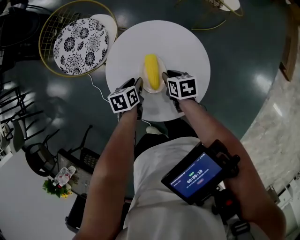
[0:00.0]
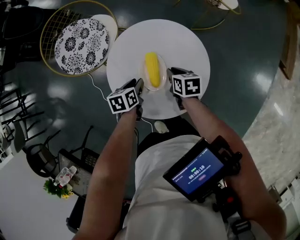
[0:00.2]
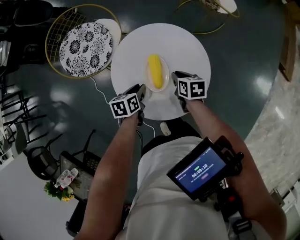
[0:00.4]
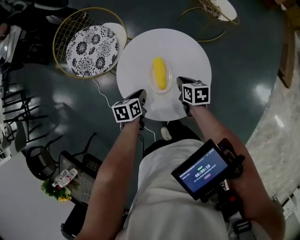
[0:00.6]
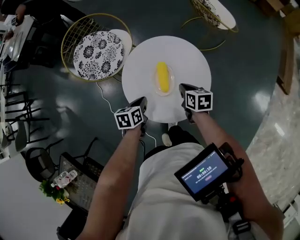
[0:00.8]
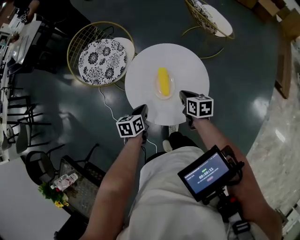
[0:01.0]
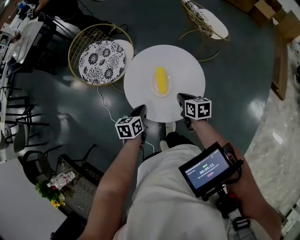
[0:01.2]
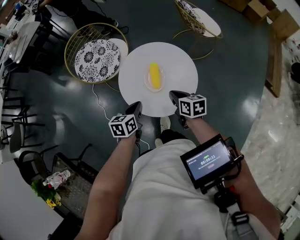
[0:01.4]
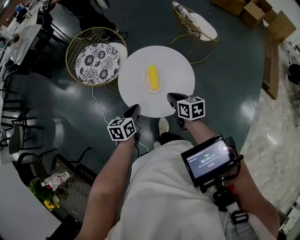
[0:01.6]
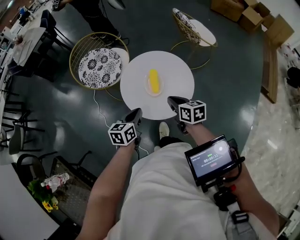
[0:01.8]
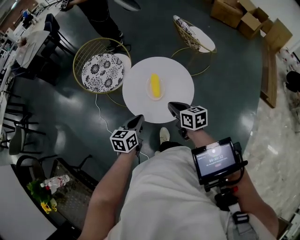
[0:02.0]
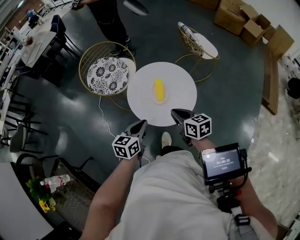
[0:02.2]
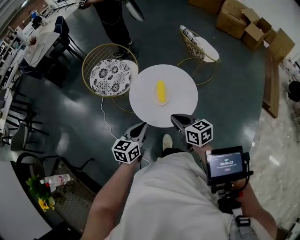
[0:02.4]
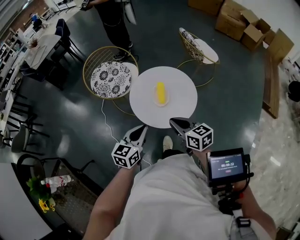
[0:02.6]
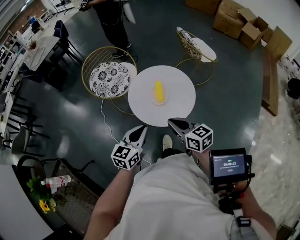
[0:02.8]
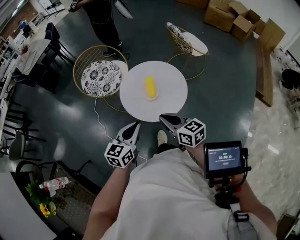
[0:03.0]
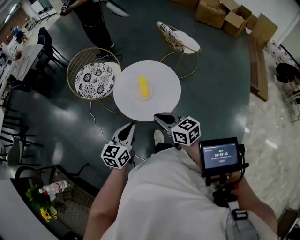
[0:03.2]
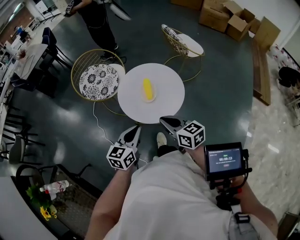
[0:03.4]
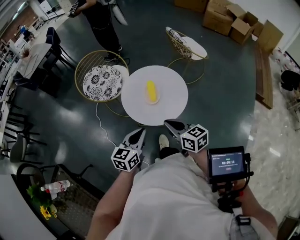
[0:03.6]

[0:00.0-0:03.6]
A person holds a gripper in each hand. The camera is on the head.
0:00.0 to 0:01.8: The two grippers go roughly 25 cm upward and backward. The left gripper rotates about 30 degrees, and closes; the right gripper turns by about 20 degrees.
0:01.8 to 0:03.6: Both grippers travel together backward and upward, some 15 cm.

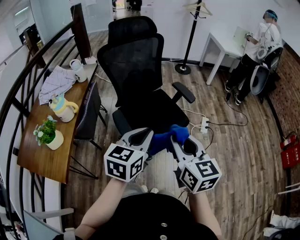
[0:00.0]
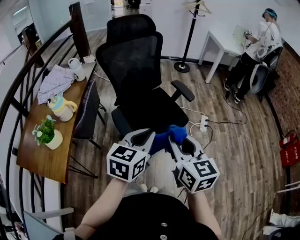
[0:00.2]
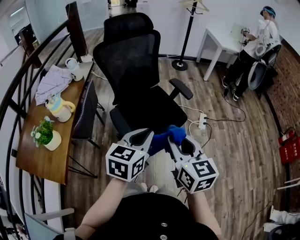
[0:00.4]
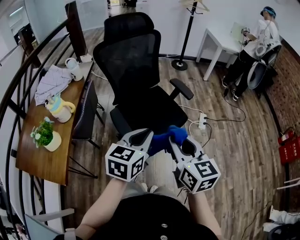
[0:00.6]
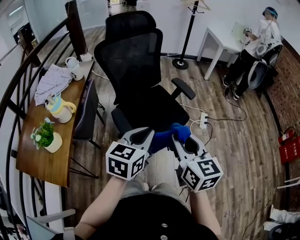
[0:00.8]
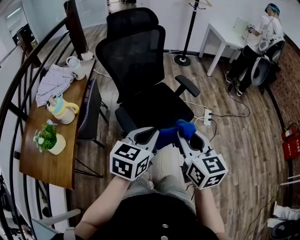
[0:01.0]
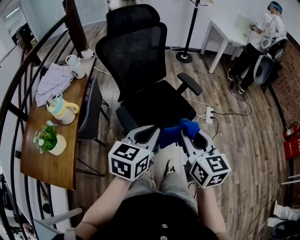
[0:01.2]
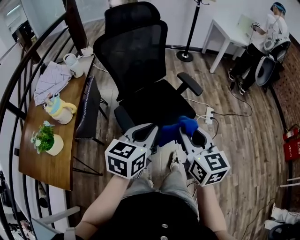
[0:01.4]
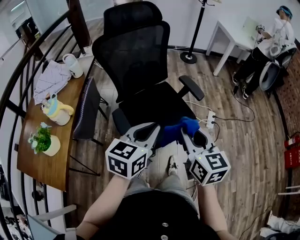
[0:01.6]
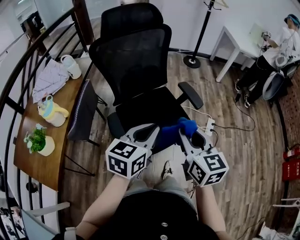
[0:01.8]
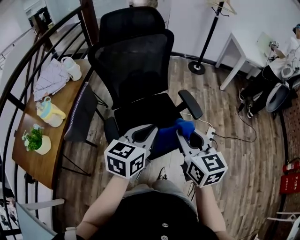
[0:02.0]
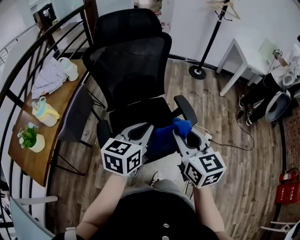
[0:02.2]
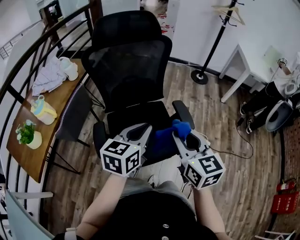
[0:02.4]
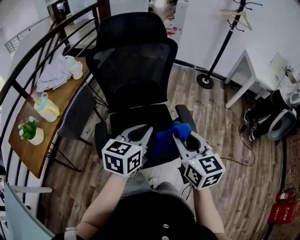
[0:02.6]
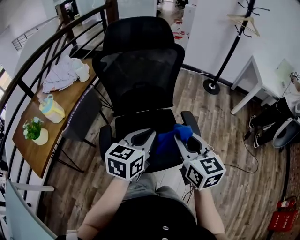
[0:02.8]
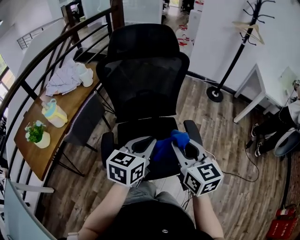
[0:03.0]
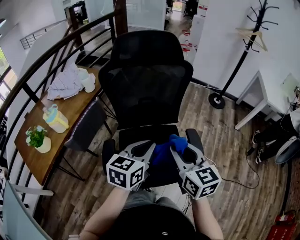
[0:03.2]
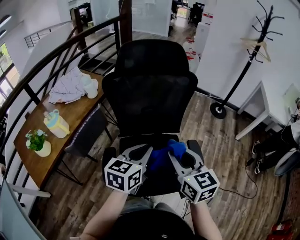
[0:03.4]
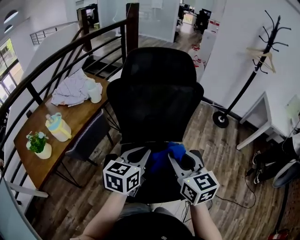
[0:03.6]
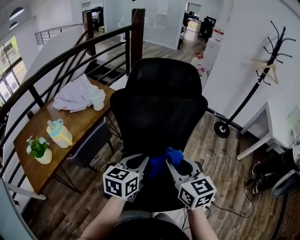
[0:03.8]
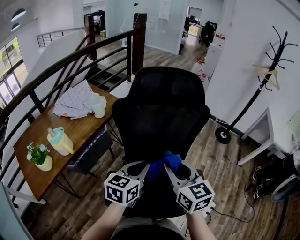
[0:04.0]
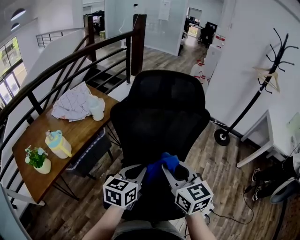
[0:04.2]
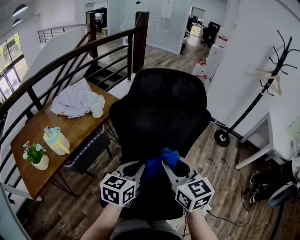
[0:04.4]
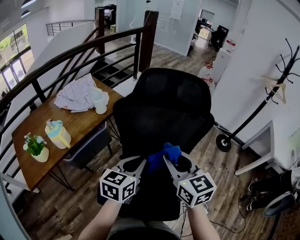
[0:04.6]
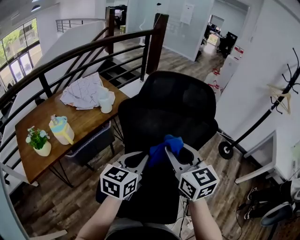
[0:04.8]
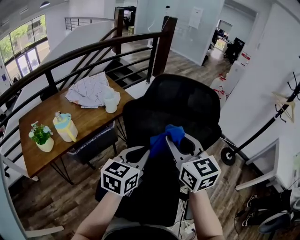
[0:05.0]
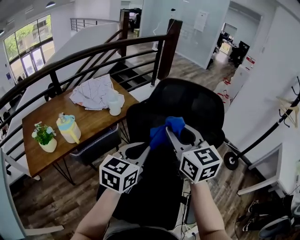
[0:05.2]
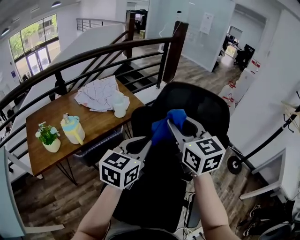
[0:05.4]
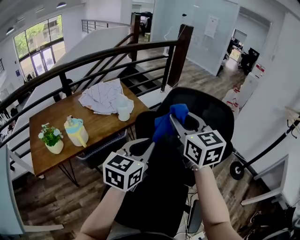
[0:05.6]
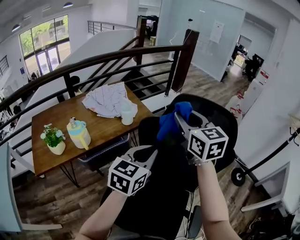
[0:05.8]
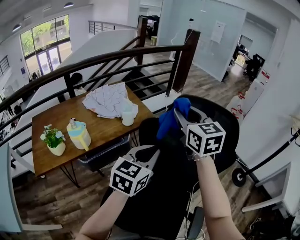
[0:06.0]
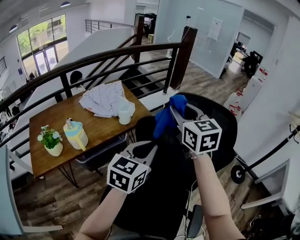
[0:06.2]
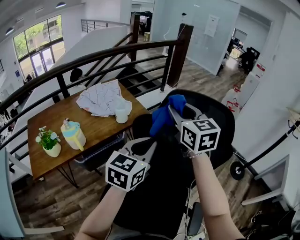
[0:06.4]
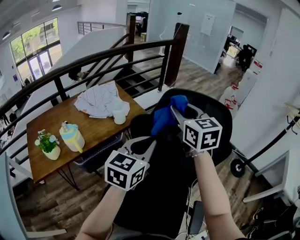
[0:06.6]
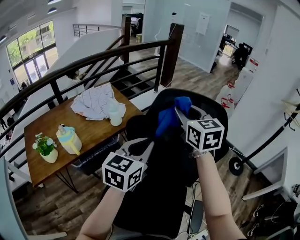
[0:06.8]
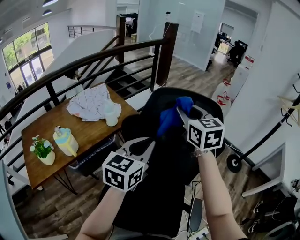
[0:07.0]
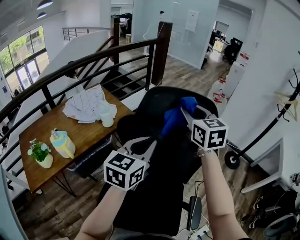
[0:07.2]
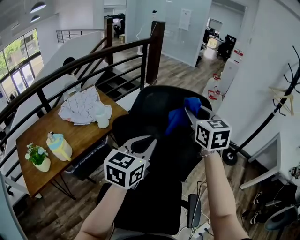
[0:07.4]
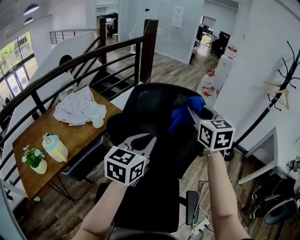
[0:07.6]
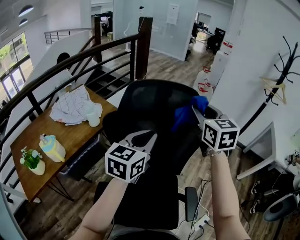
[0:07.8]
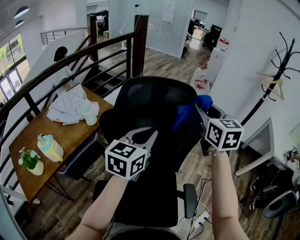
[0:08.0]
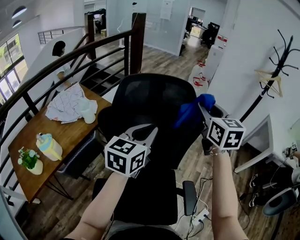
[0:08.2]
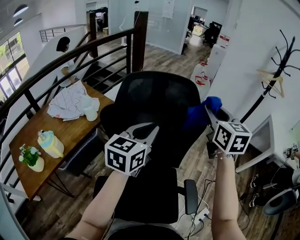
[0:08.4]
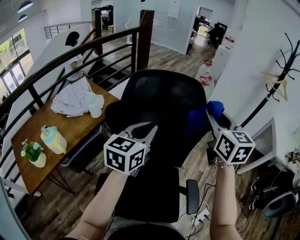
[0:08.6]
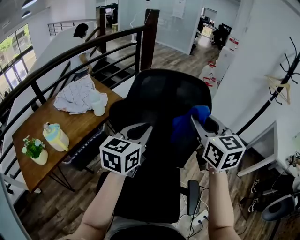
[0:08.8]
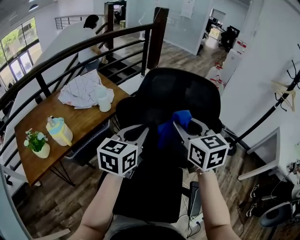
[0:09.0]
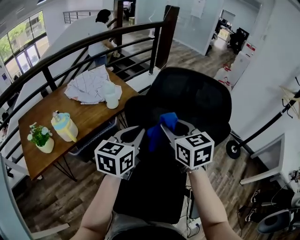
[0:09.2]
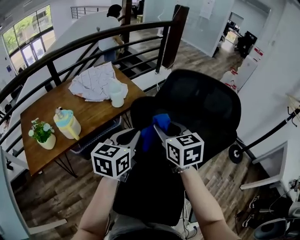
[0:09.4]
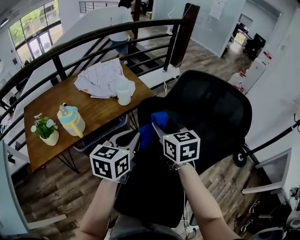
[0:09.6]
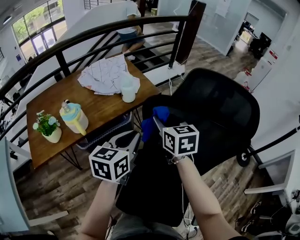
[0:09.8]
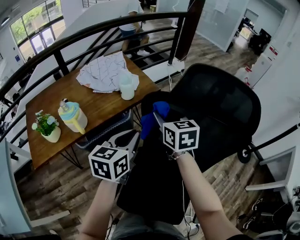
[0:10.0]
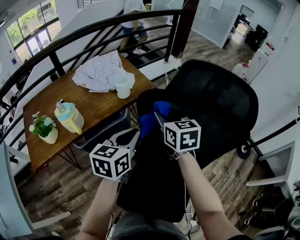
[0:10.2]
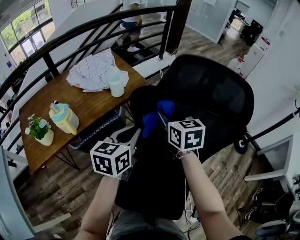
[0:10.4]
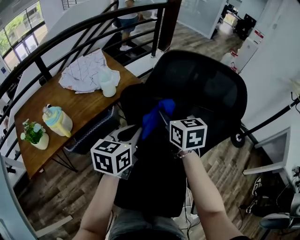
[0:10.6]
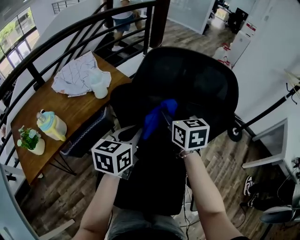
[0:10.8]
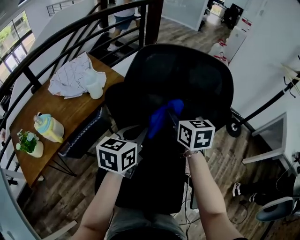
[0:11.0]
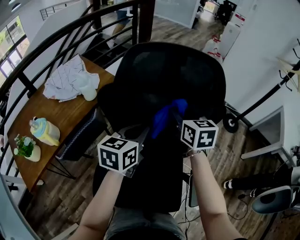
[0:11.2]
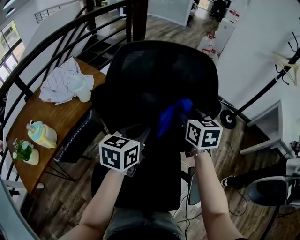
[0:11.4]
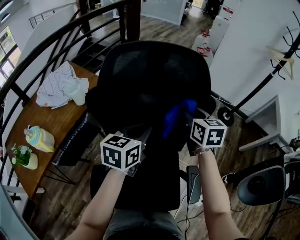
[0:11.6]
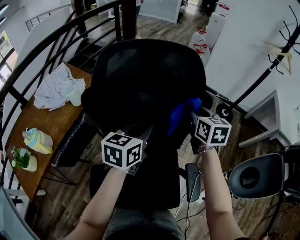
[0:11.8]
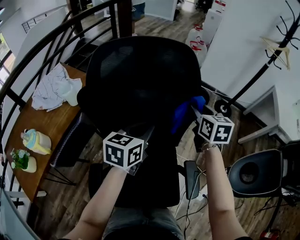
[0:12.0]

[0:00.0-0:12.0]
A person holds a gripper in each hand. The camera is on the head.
0:00.0 to 0:01.6: The grippers both shift forward by about 10 cm.
0:01.6 to 0:03.0: The left gripper changes place by some 20 cm, and turns by some 20 degrees. Meanwhile the right gripper moves some 25 cm, and rotates roughly 30 degrees.
0:03.0 to 0:04.4: Both grippers travel together forward and to the left, roughly 20 cm.
0:04.4 to 0:06.0: The left gripper goes some 15 cm forward and upward, while the right gripper heads forward and upward, covering roughly 30 cm.
0:06.0 to 0:07.6: The right gripper moves to the right, some 20 cm, and changes its angle by approximately 20 degrees. The left gripper moves to the right, approximately 10 cm.
0:07.6 to 0:09.0: The right gripper is displaced backward, to the left and downward by roughly 15 cm, while the left gripper goes some 5 cm to the left.
0:09.0 to 0:10.4: The left gripper moves downward and to the left, approximately 10 cm, while the right gripper is displaced downward, forward and to the left by some 20 cm.
0:10.4 to 0:12.0: The left gripper ends up roughly 25 cm from where it was, and rotates about 30 degrees; the right gripper changes place by roughly 35 cm, and swivels roughly 30 degrees.

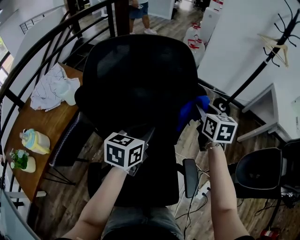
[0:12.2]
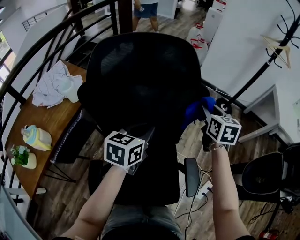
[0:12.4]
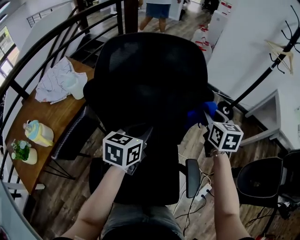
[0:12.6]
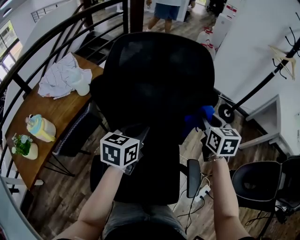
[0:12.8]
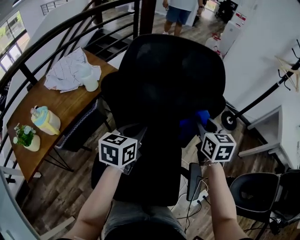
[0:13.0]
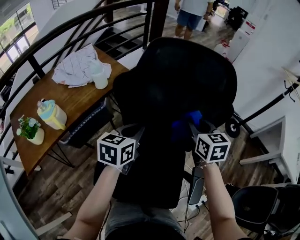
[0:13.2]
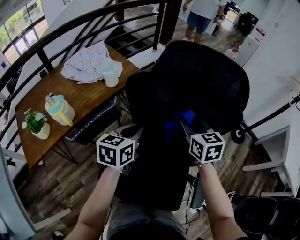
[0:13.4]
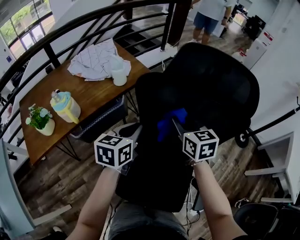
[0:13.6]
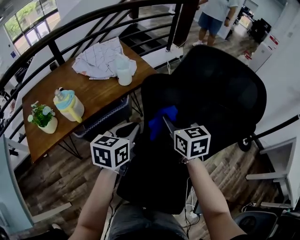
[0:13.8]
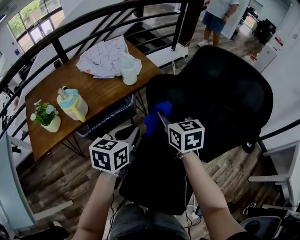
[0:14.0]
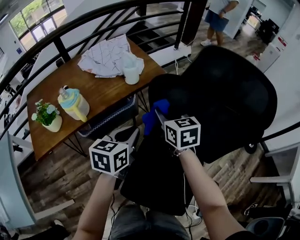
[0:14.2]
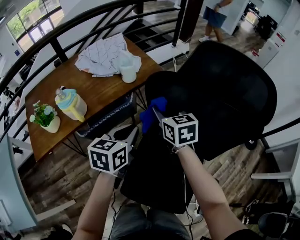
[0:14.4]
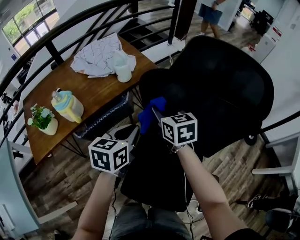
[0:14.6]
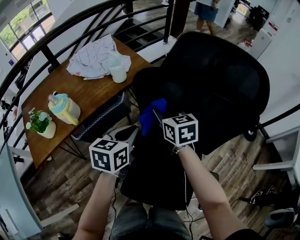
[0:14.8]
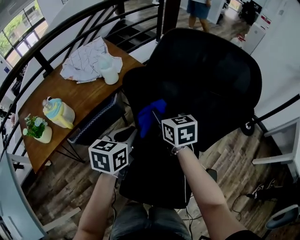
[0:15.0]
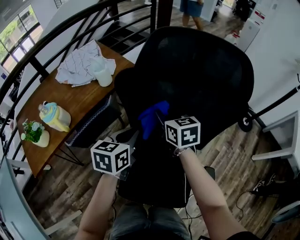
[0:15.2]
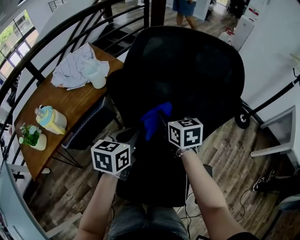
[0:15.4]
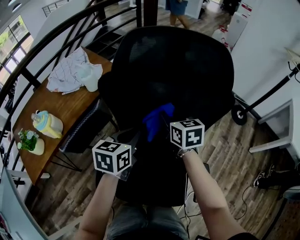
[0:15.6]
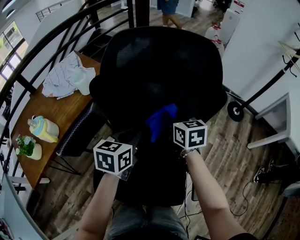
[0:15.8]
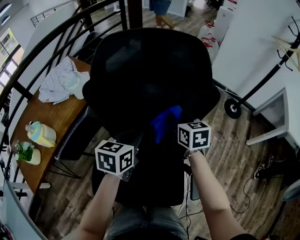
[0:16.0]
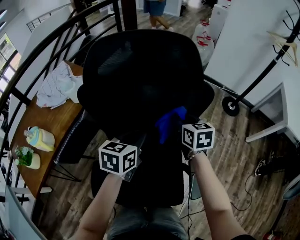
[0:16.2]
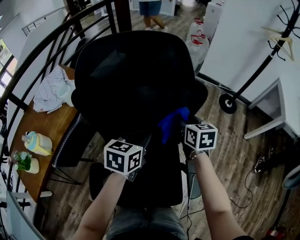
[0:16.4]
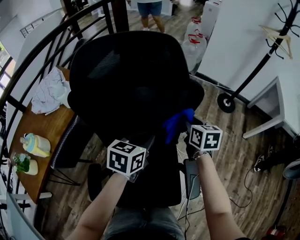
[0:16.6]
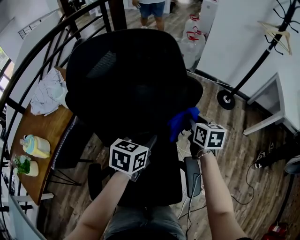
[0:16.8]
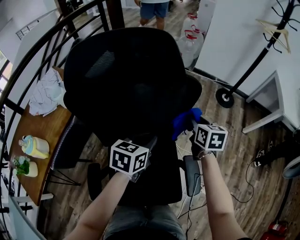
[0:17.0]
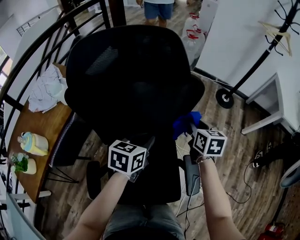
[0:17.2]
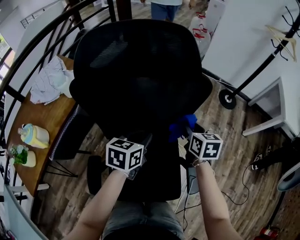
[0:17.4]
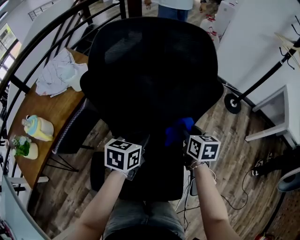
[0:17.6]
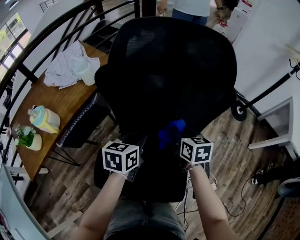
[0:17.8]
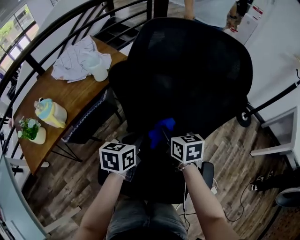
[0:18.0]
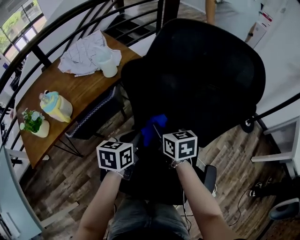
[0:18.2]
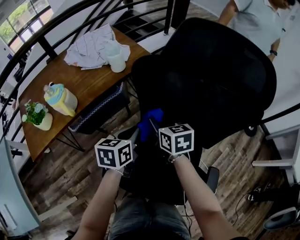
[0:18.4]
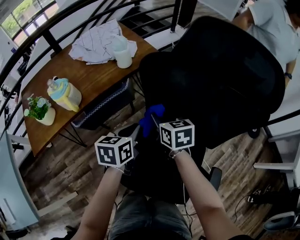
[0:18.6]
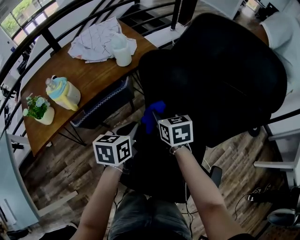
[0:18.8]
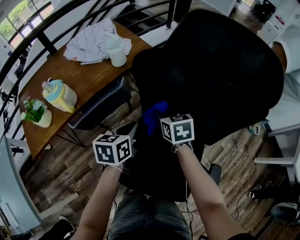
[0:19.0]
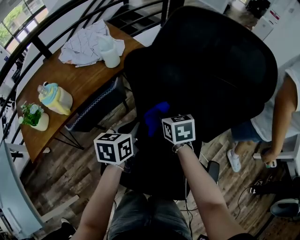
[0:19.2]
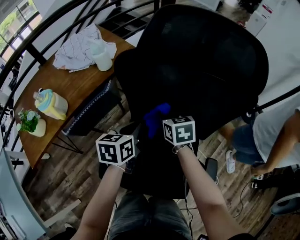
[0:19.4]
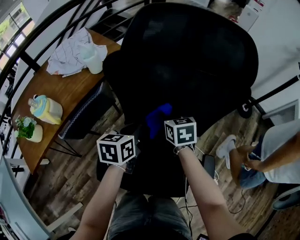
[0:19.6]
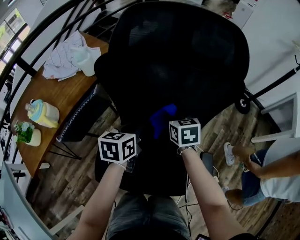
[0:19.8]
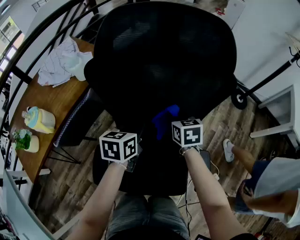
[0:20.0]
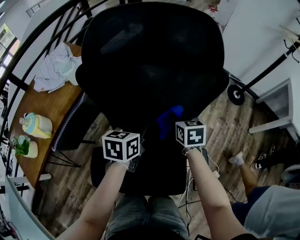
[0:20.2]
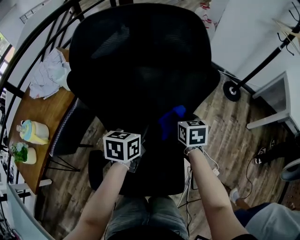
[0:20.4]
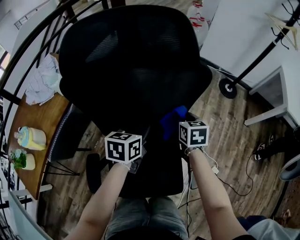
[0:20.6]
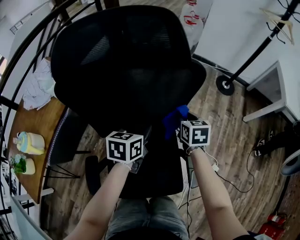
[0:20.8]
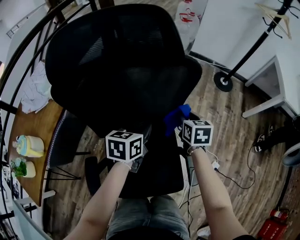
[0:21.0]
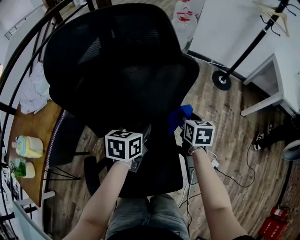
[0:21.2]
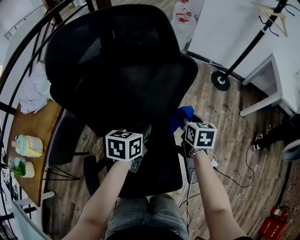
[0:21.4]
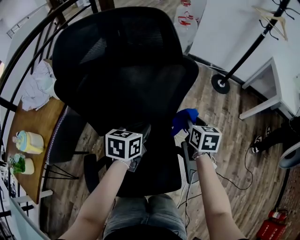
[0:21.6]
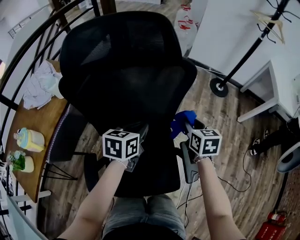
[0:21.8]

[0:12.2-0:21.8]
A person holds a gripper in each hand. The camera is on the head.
0:12.2 to 0:13.8: The right gripper shifts by roughly 40 cm, and turns by approximately 40 degrees; the left gripper moves some 25 cm, and rotates approximately 30 degrees.
0:13.8 to 0:15.4: The two grippers go some 10 cm to the right.
0:15.4 to 0:17.0: The right gripper ends up about 30 cm from where it was, and swivels approximately 30 degrees, while the left gripper ends up approximately 20 cm from where it was, and rotates about 20 degrees.
0:17.0 to 0:18.6: The left gripper changes place by roughly 30 cm, and turns by approximately 40 degrees. The right gripper ends up roughly 40 cm from where it was, and turns by about 40 degrees.
0:18.6 to 0:20.2: The right gripper ends up some 25 cm from where it was, and swivels roughly 30 degrees. Meanwhile the left gripper ends up approximately 20 cm from where it was, and rotates approximately 20 degrees.
0:20.2 to 0:21.8: The left gripper goes about 10 cm to the right; the right gripper moves to the right, approximately 15 cm.
